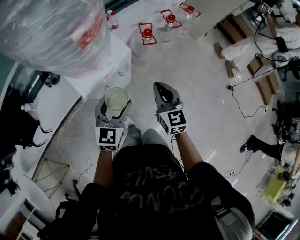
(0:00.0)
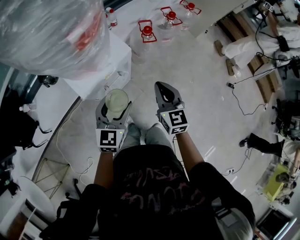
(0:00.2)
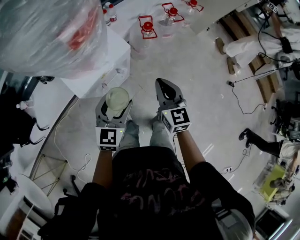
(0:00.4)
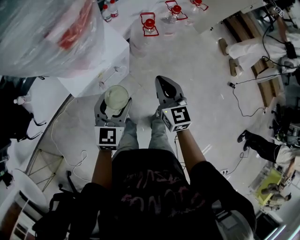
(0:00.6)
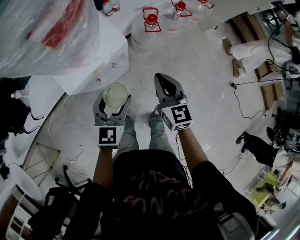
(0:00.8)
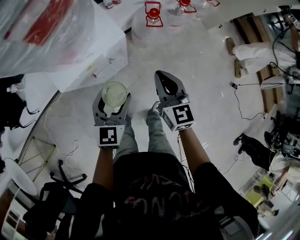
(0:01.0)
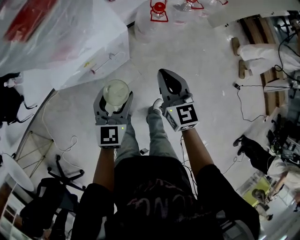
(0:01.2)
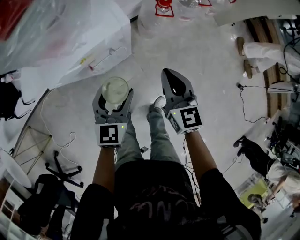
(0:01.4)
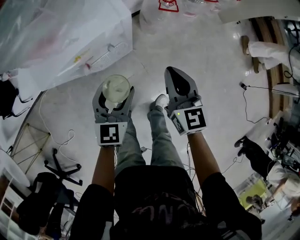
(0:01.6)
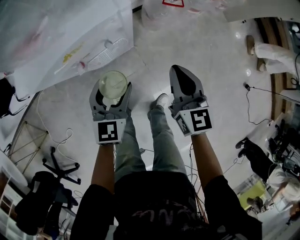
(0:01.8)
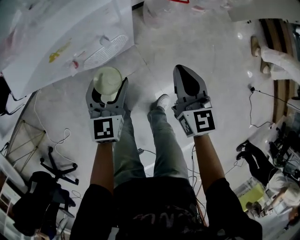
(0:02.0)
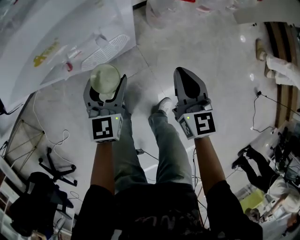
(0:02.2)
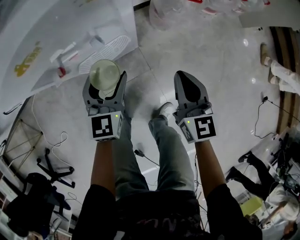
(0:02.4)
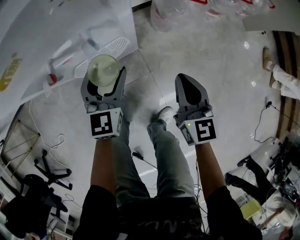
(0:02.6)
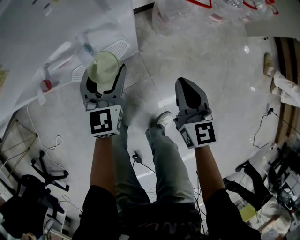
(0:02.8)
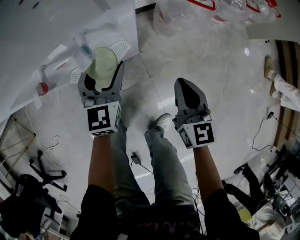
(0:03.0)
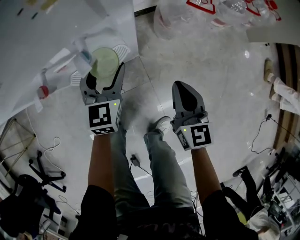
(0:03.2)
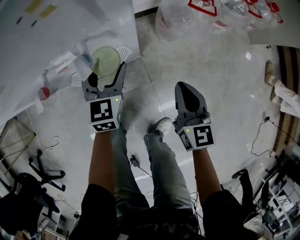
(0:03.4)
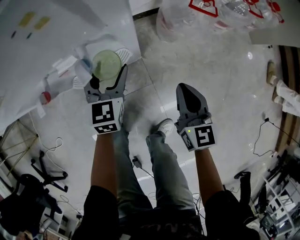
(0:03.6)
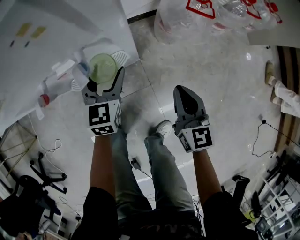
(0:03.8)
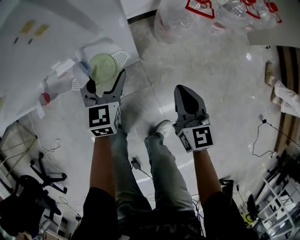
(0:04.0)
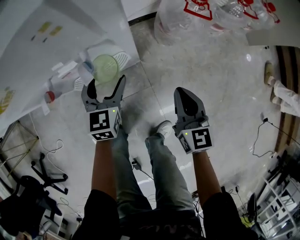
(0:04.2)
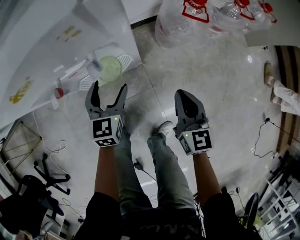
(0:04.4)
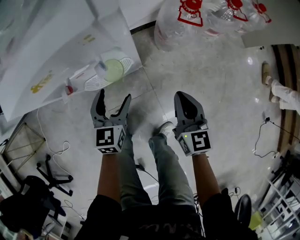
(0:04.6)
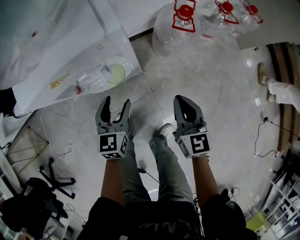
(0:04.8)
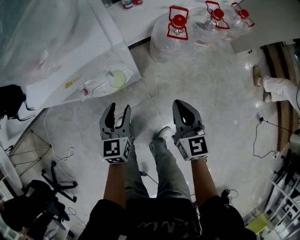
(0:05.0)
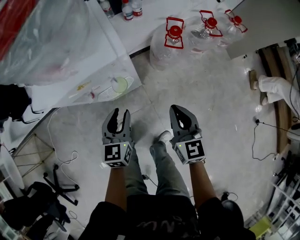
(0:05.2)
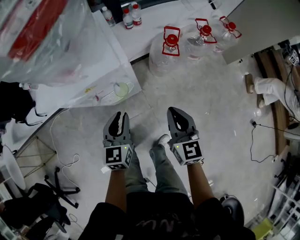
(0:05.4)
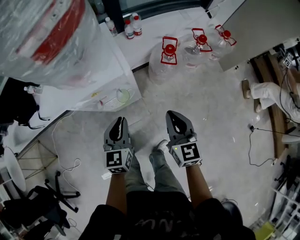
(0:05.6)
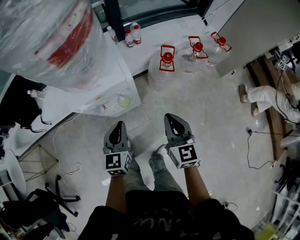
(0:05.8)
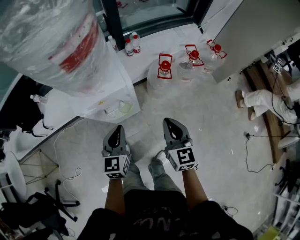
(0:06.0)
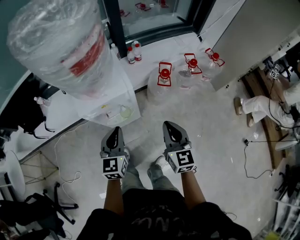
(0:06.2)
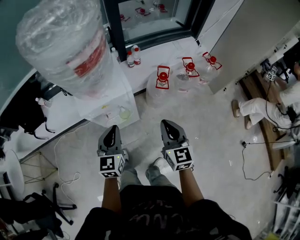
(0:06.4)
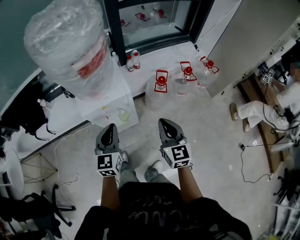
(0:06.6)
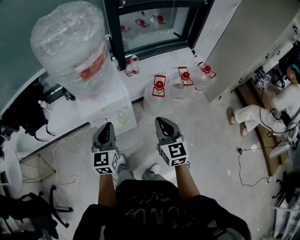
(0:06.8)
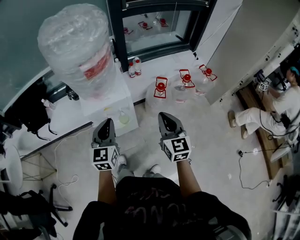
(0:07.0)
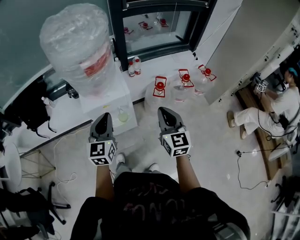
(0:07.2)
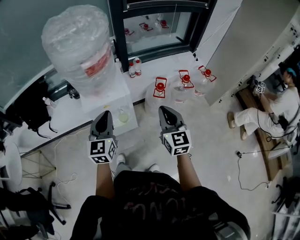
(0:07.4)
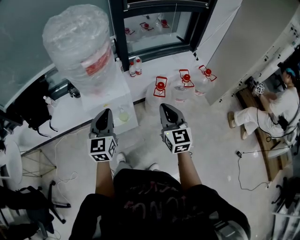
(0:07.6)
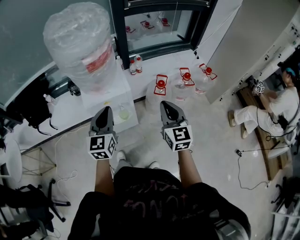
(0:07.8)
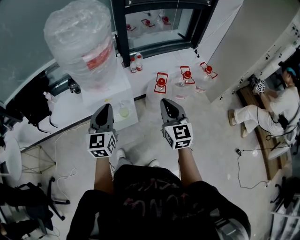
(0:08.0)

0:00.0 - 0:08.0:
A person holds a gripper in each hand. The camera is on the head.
0:00.0 - 0:01.6: The grippers both shift downward by some 15 cm.
0:01.6 - 0:03.2: The left gripper goes some 25 cm downward and forward; the right gripper goes some 25 cm downward.
0:03.2 - 0:04.8: The right gripper travels upward by approximately 10 cm. The left gripper moves backward and upward, approximately 10 cm.
0:04.8 - 0:06.4: The grippers both shift upward by roughly 30 cm. The left gripper closes.
0:06.4 - 0:08.0: Both grippers move upward, some 10 cm.

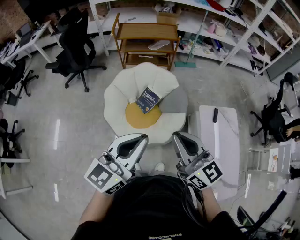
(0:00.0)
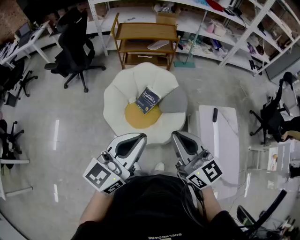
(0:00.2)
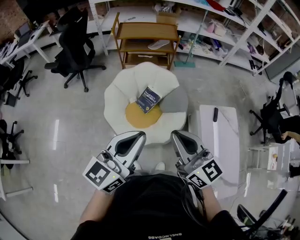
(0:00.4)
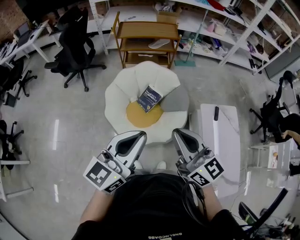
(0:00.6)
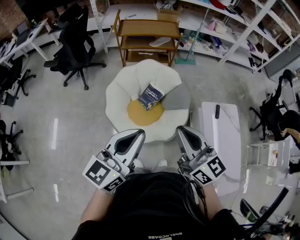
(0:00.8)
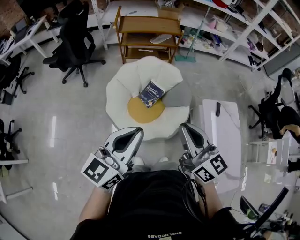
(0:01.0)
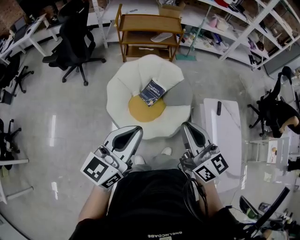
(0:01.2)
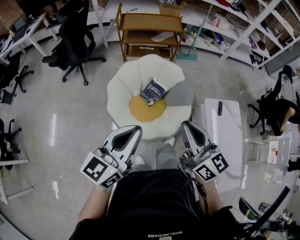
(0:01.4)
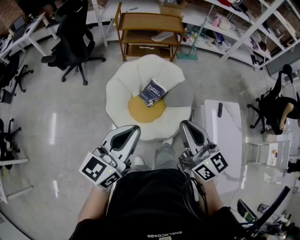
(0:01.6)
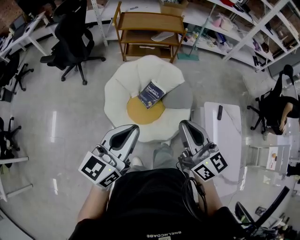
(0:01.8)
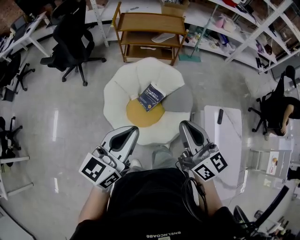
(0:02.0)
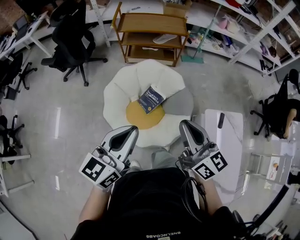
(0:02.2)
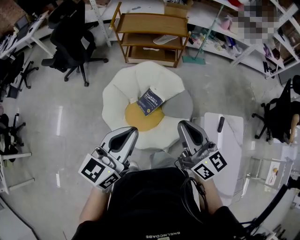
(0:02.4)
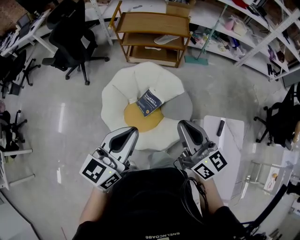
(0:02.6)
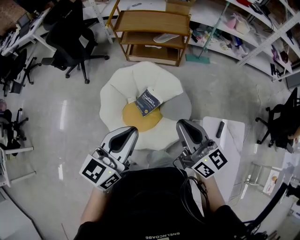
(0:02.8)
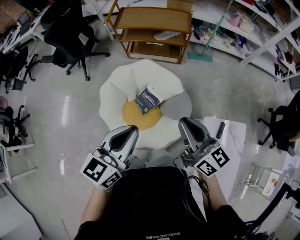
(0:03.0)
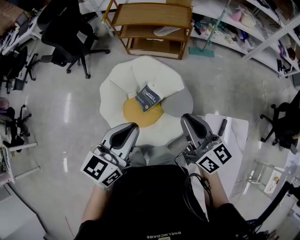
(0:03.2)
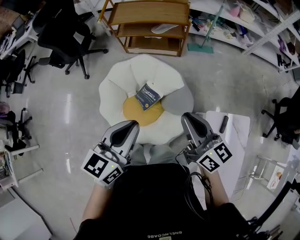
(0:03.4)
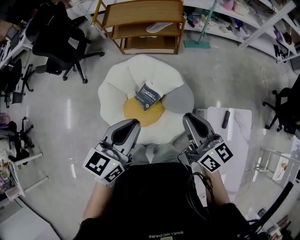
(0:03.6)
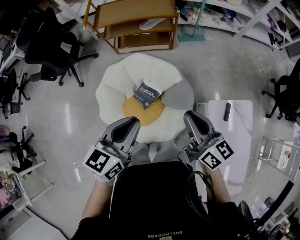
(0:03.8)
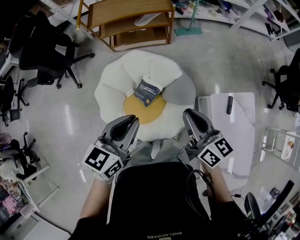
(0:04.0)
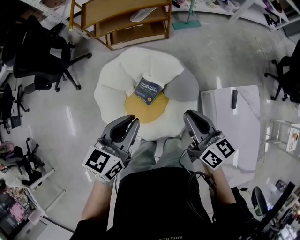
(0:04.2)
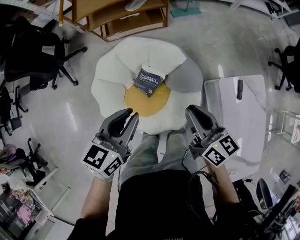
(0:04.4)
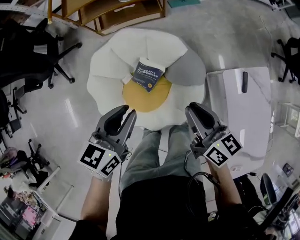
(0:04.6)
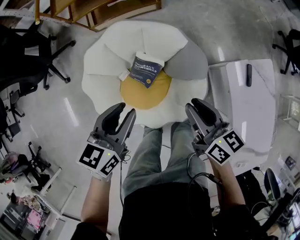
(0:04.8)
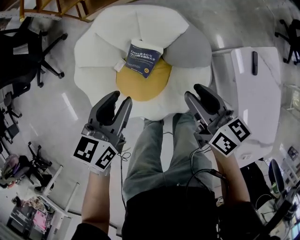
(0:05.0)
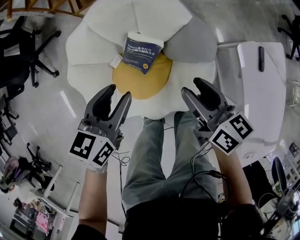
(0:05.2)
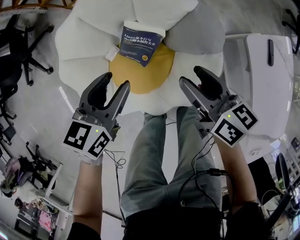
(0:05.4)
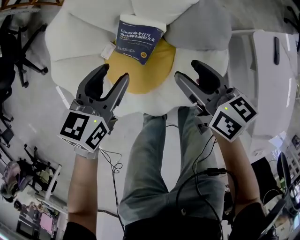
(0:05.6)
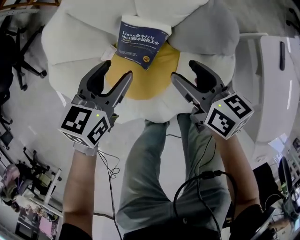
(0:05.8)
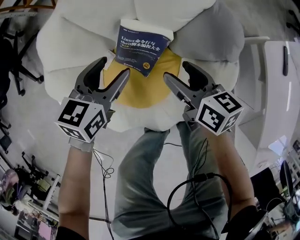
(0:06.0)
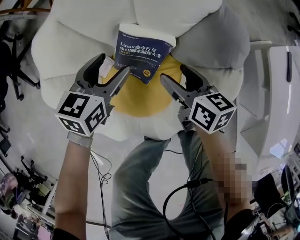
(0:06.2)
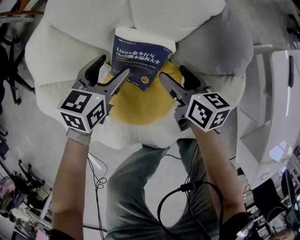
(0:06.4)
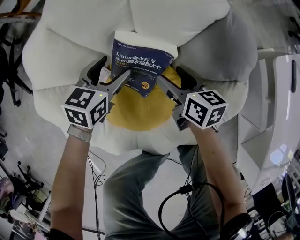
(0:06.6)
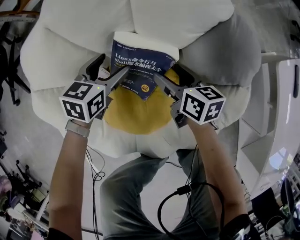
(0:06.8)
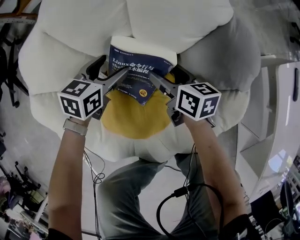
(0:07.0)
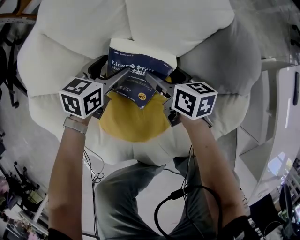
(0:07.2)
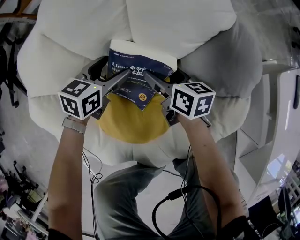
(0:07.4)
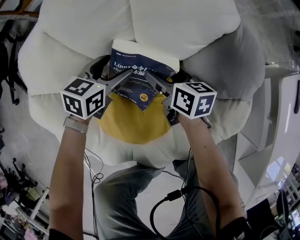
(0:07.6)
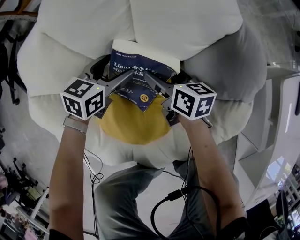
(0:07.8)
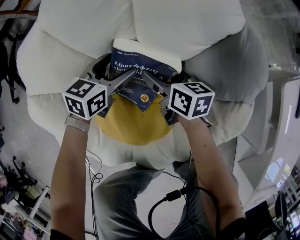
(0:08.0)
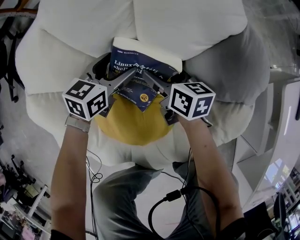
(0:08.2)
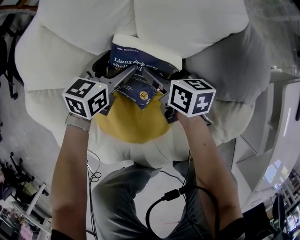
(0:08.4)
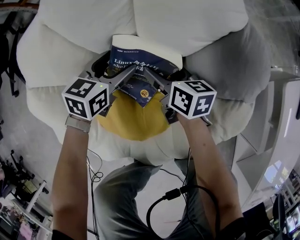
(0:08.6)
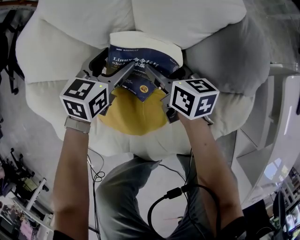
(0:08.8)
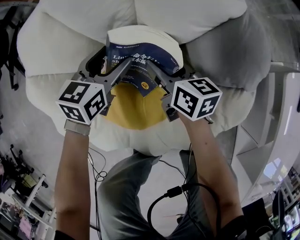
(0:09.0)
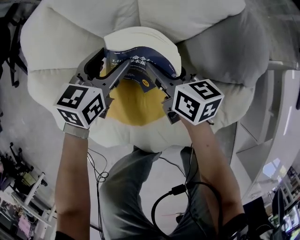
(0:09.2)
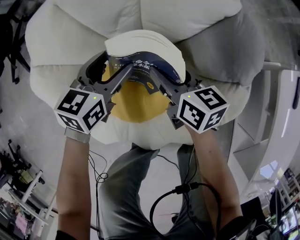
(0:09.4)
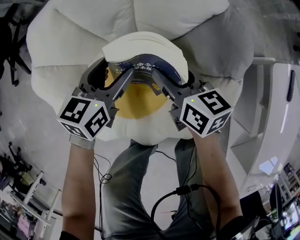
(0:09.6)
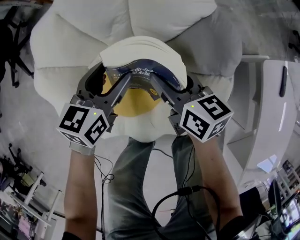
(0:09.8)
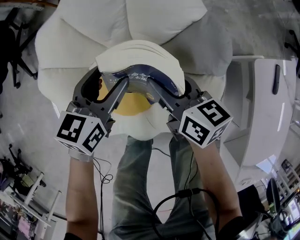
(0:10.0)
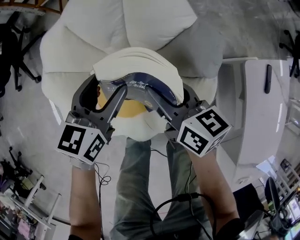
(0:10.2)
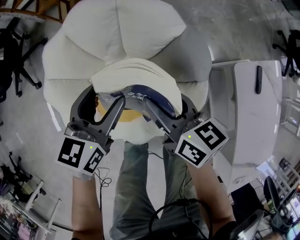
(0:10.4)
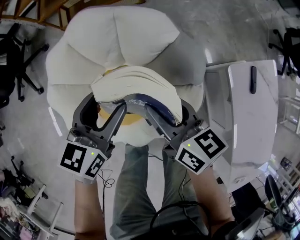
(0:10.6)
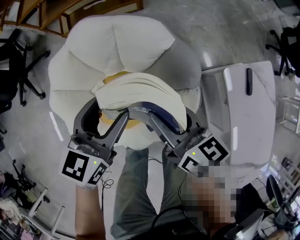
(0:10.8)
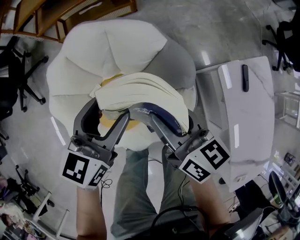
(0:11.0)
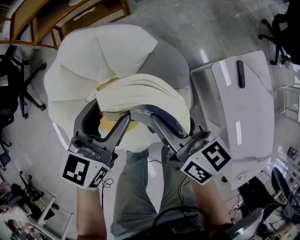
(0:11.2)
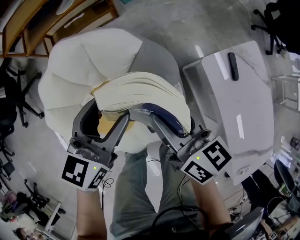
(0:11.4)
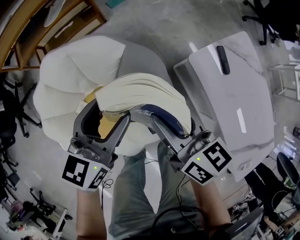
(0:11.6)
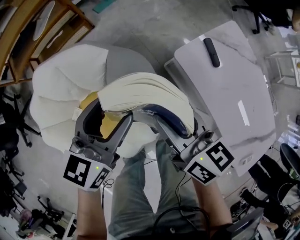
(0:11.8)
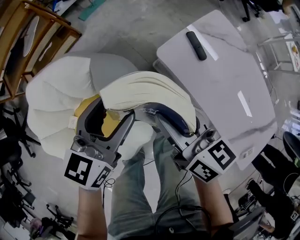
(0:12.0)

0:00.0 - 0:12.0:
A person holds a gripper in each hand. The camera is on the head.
0:00.0 - 0:01.6: The right gripper travels to the left by roughly 5 cm. Meanwhile the left gripper moves to the left, some 10 cm.
0:01.6 - 0:03.0: The grippers both shift forward and to the right by some 30 cm.
0:03.0 - 0:04.4: The left gripper travels downward and forward by approximately 20 cm, and swivels about 20 degrees; the right gripper is displaced downward by about 15 cm, and swivels some 30 degrees.
0:04.4 - 0:06.0: The two grippers go approximately 40 cm downward. The right gripper opens; the left gripper opens up.
0:06.0 - 0:07.6: Both grippers travel together downward and forward, approximately 20 cm.
0:07.6 - 0:09.0: The right gripper closes up.
0:09.0 - 0:10.4: The two grippers go about 25 cm upward.
0:10.4 - 0:12.0: The left gripper moves some 35 cm, and changes its angle by approximately 30 degrees, while the right gripper moves some 30 cm, and rotates about 30 degrees.

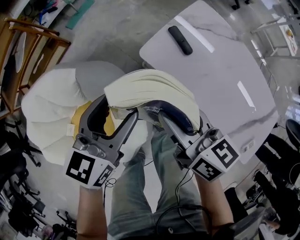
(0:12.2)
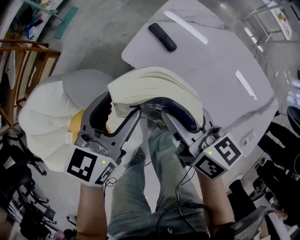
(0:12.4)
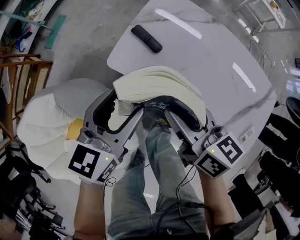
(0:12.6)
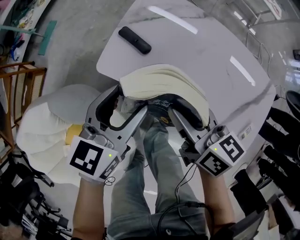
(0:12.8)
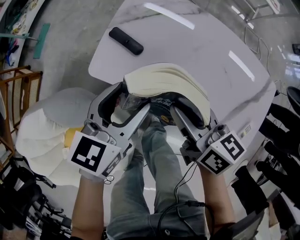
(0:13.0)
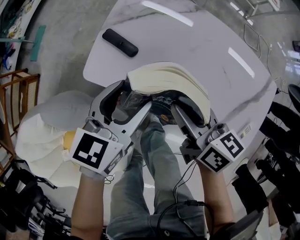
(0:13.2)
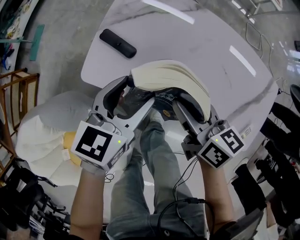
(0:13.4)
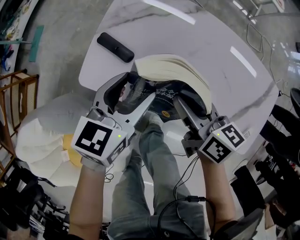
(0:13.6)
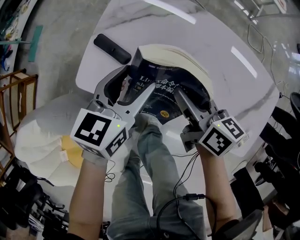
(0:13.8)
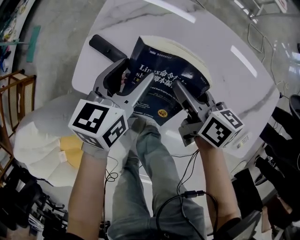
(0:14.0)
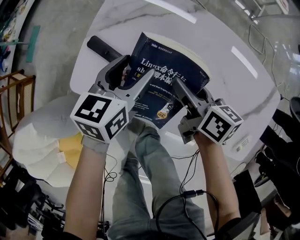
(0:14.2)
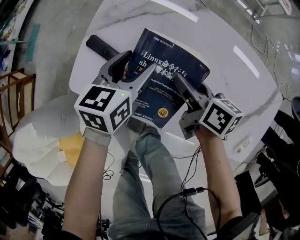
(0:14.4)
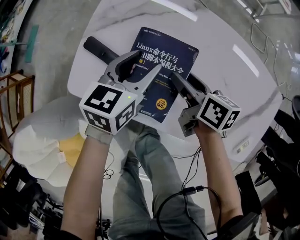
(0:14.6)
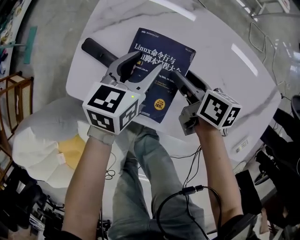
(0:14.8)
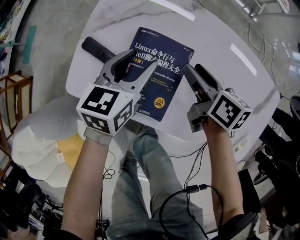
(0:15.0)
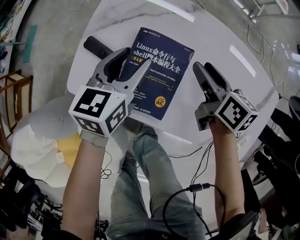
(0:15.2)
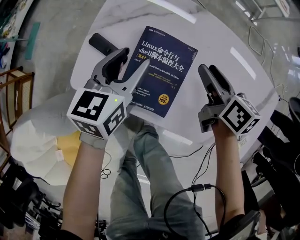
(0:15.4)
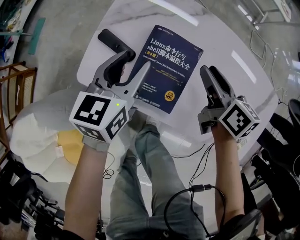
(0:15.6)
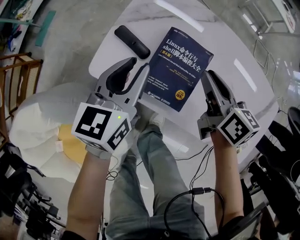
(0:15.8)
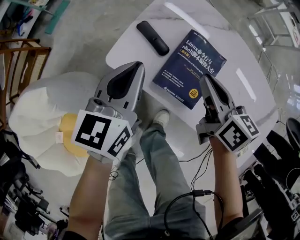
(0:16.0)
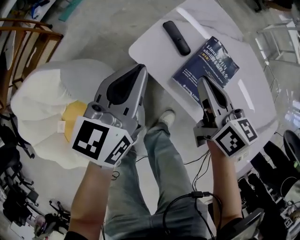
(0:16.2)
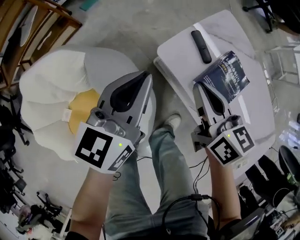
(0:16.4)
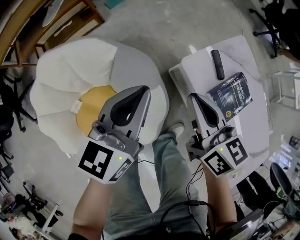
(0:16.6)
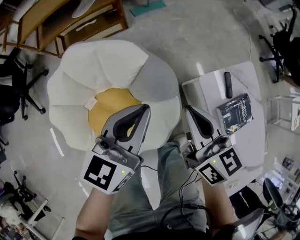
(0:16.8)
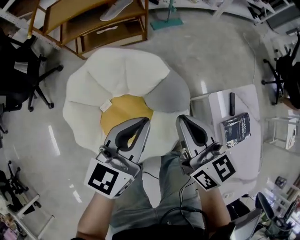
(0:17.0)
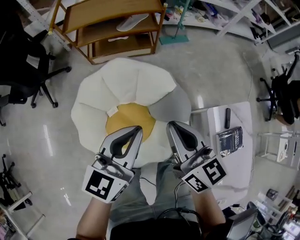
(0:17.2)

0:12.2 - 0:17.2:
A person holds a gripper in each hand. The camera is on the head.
0:12.2 - 0:13.8: The right gripper is displaced to the right, downward and forward by roughly 35 cm, and turns by approximately 30 degrees, while the left gripper heads to the right, forward and downward, covering about 35 cm, and swivels some 20 degrees.
0:13.8 - 0:15.6: The right gripper goes about 5 cm forward, and moves roughly 10 cm downward and comes back.
0:15.6 - 0:17.2: The two grippers travel together, about 70 cm. The left gripper rotates some 50 degrees, and closes its fingers, while the right gripper rotates approximately 70 degrees, and closes up.
